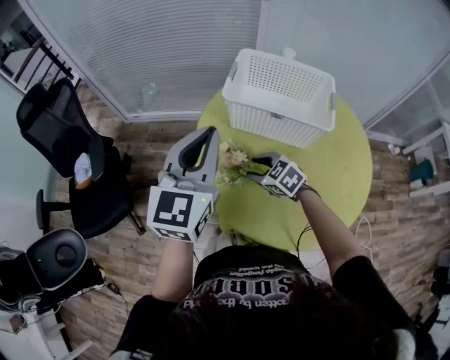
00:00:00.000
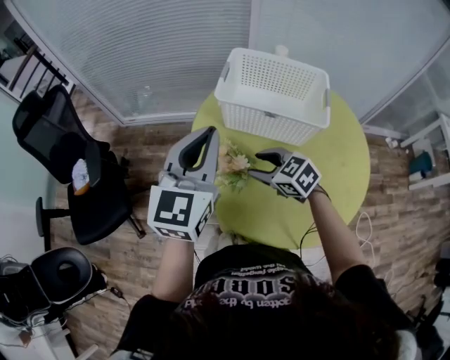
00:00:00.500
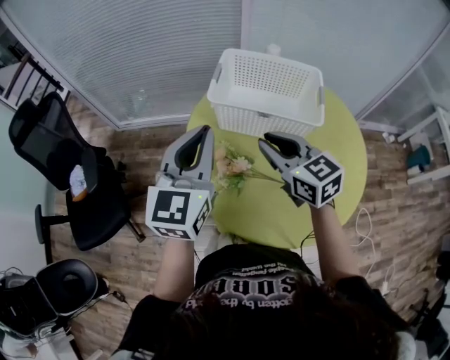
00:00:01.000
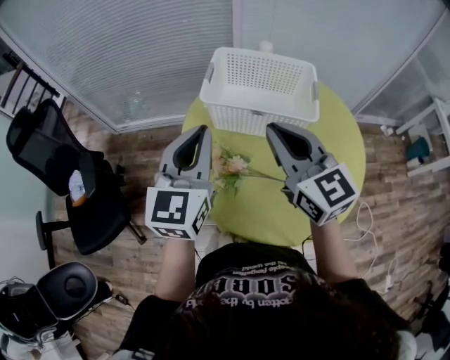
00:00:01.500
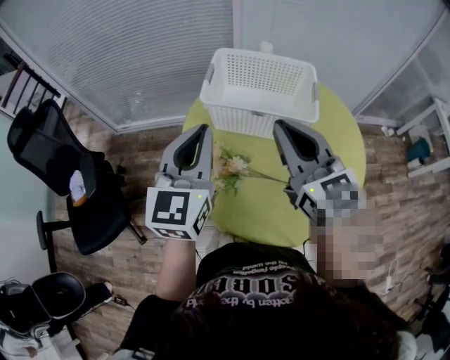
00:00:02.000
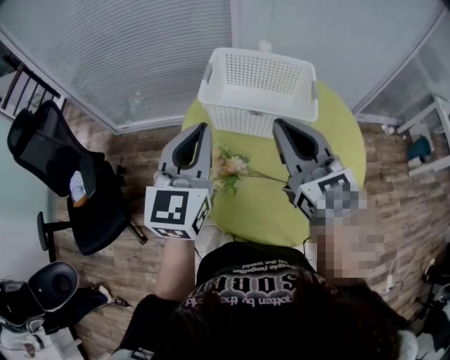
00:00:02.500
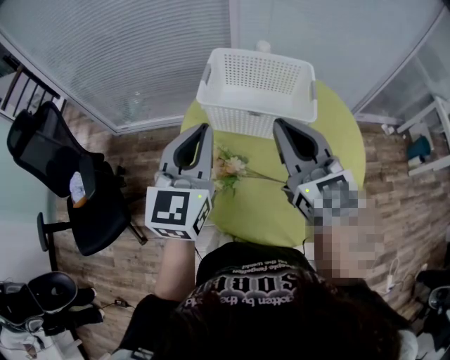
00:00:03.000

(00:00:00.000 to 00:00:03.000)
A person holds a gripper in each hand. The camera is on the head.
00:00:00.000 - 00:00:01.500: The right gripper goes about 30 cm upward, tilts its fingers some 40 degrees upward, and closes its fingers.
00:00:01.500 - 00:00:03.000: The grippers stay close to where they were, moving slightly.

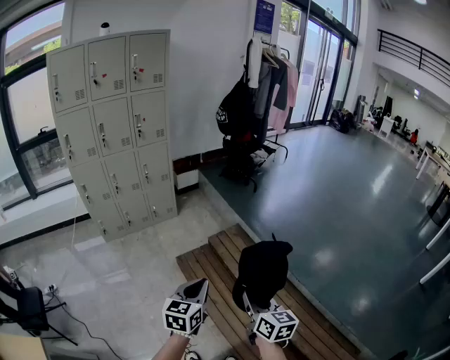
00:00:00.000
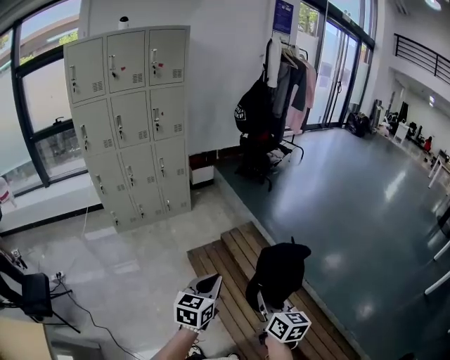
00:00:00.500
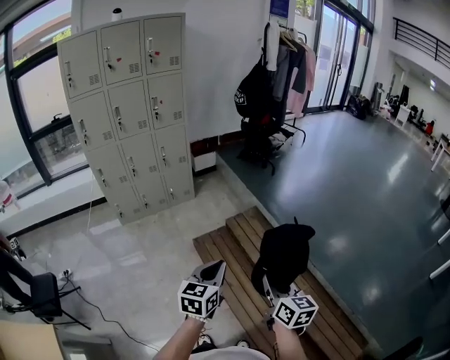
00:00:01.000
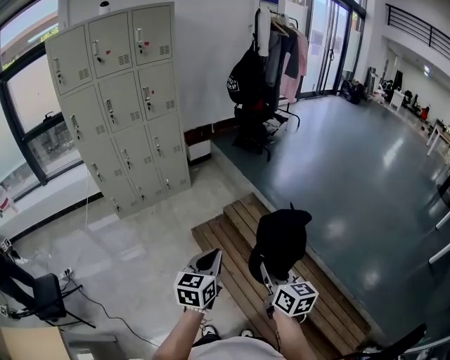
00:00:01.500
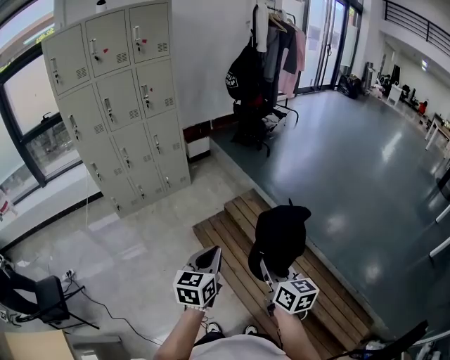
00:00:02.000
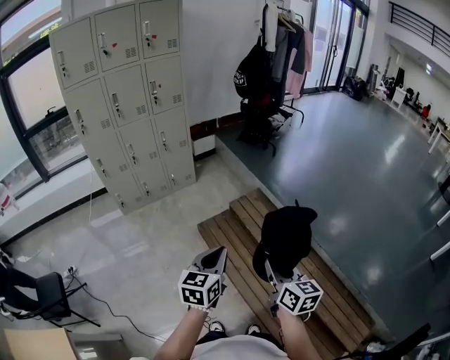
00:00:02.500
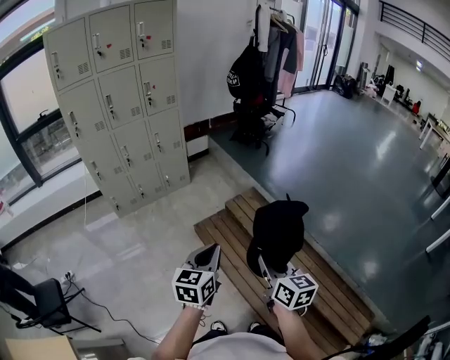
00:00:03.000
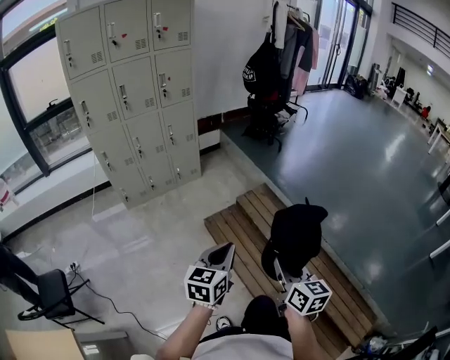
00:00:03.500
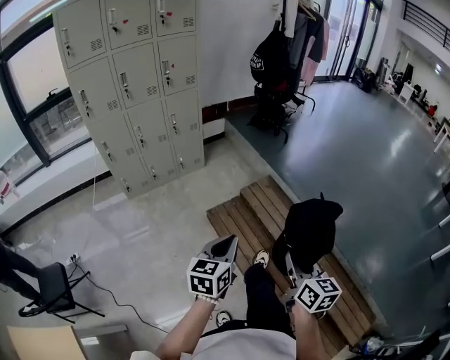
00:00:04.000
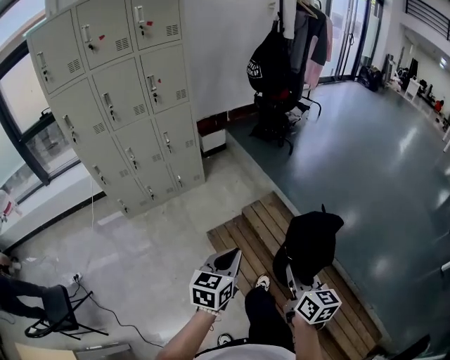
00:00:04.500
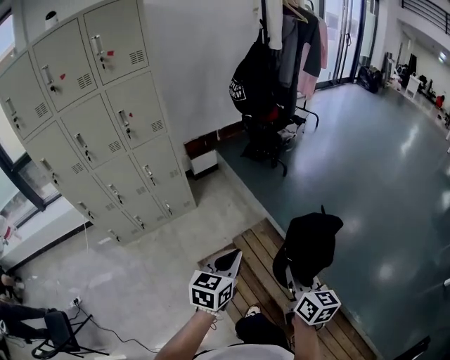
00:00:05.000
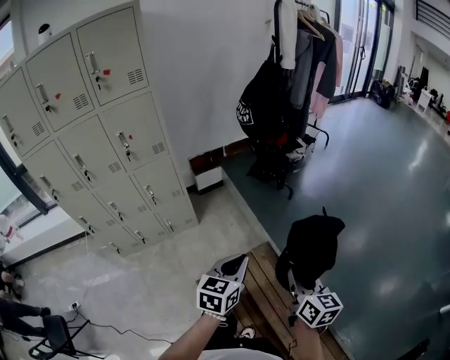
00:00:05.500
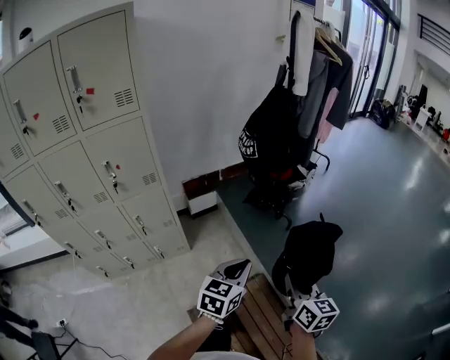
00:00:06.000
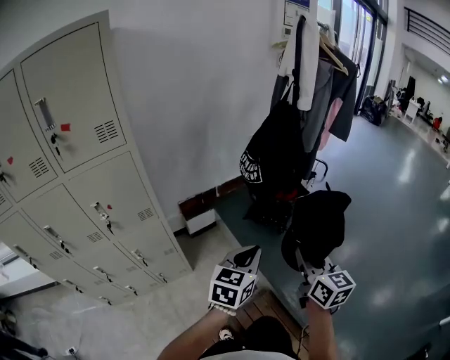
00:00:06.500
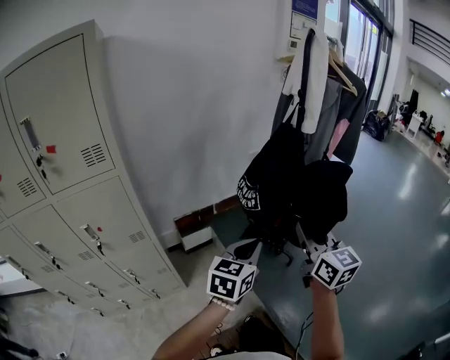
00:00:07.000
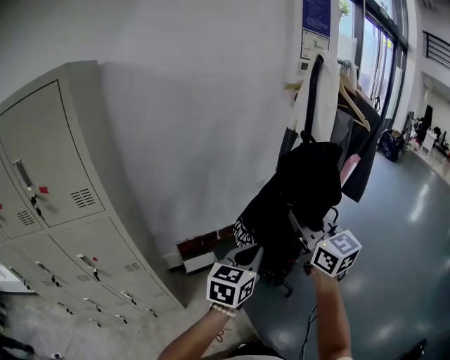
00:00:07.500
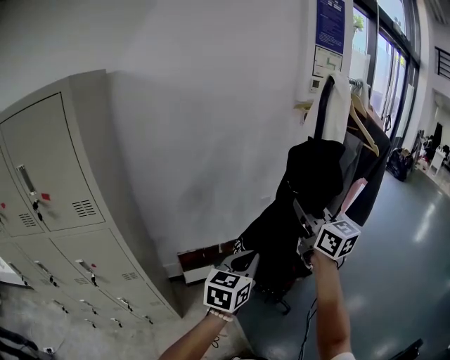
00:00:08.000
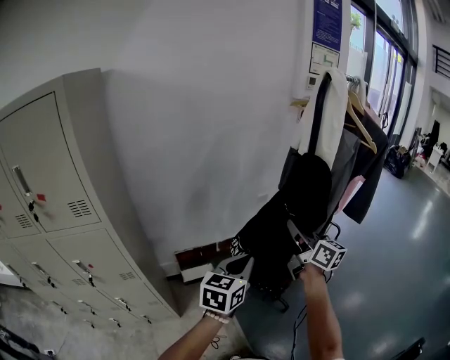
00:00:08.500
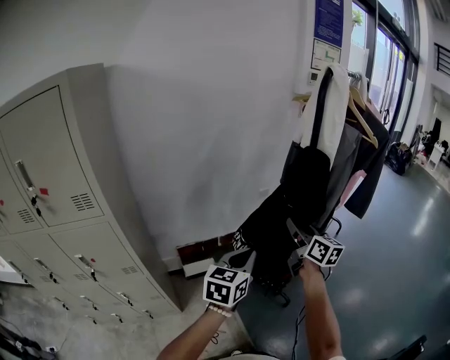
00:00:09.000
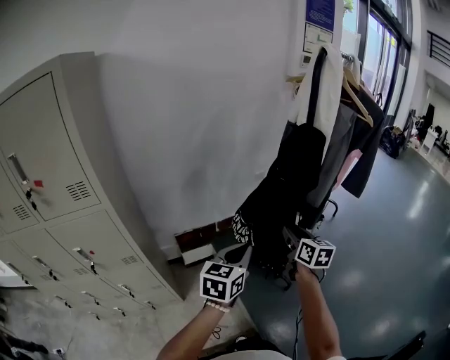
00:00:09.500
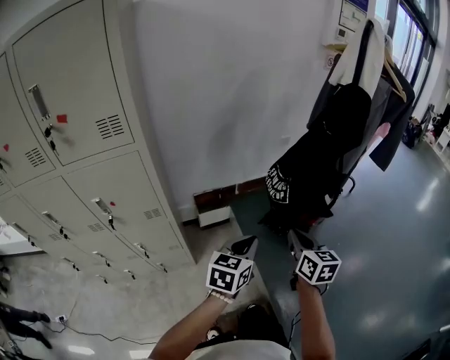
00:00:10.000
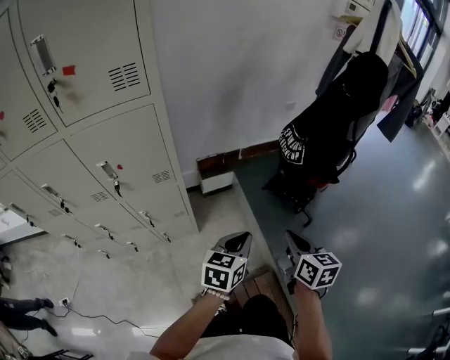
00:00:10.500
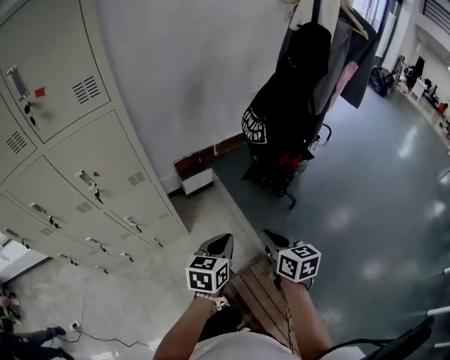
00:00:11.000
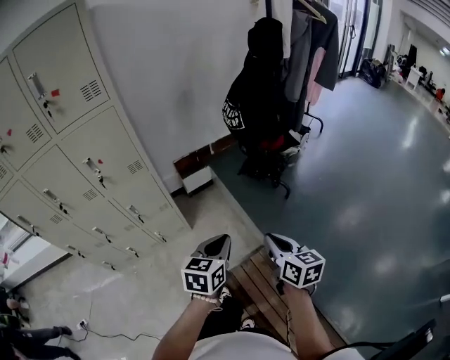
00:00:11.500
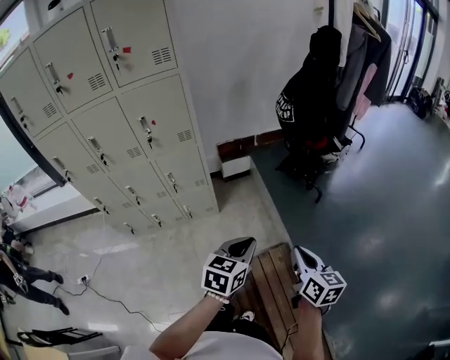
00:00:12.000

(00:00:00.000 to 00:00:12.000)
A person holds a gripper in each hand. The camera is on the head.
00:00:00.000 - 00:00:02.000: The grippers make only small movements.
00:00:02.000 - 00:00:04.000: The two grippers go roughly 5 cm to the left.
00:00:04.000 - 00:00:06.000: Both grippers are carried forward, about 70 cm.
00:00:06.000 - 00:00:08.000: The pair of grippers is taken forward, approximately 60 cm. The right gripper shifts about 35 cm upward, and swivels some 30 degrees. Meanwhile the left gripper is displaced upward by some 20 cm.
00:00:08.000 - 00:00:10.000: The left gripper is displaced downward, backward and to the left by roughly 25 cm; the right gripper heads downward and backward, covering about 35 cm, changes its angle by roughly 30 degrees, and opens, then closes once more.
00:00:10.000 - 00:00:12.000: Both grippers are carried backward, roughly 40 cm.

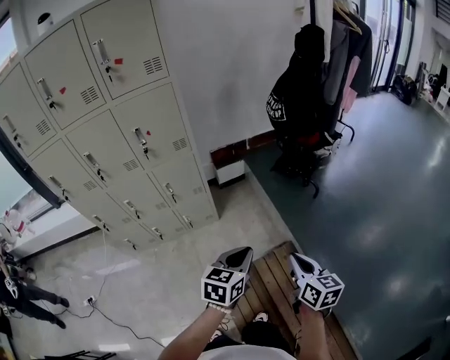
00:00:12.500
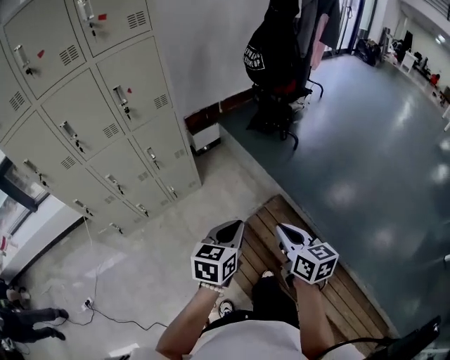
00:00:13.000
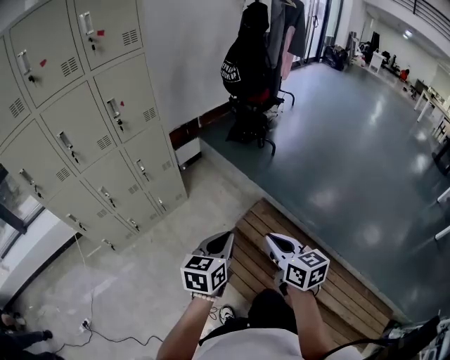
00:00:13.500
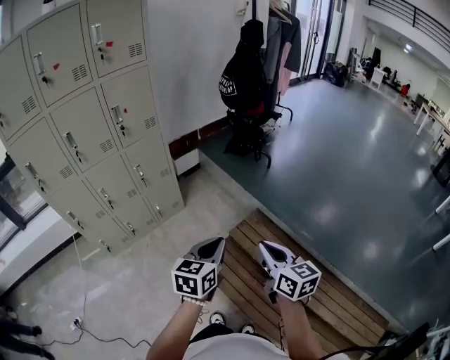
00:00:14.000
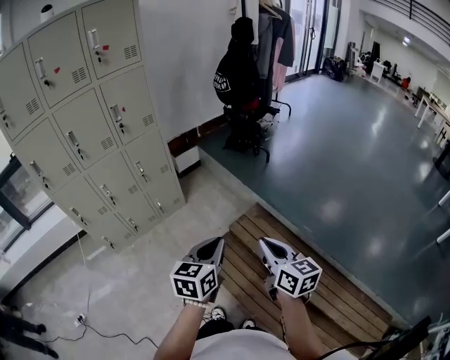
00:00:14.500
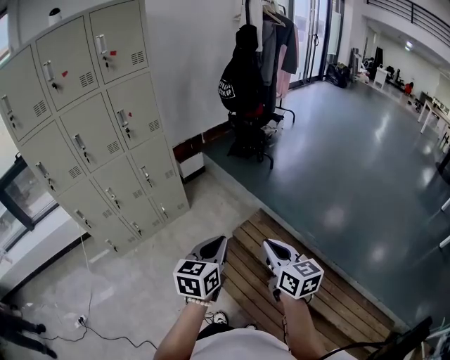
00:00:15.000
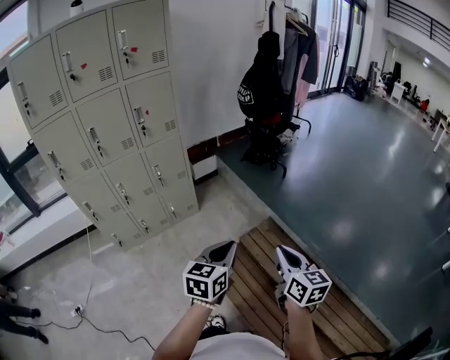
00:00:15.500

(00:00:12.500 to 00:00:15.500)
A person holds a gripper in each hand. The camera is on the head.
00:00:12.500 - 00:00:14.000: The two grippers go about 25 cm backward.
00:00:14.000 - 00:00:15.500: The right gripper heads to the right, covering roughly 5 cm.

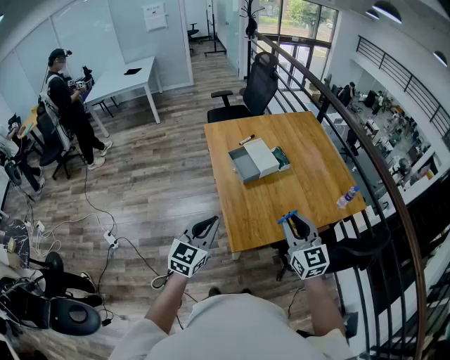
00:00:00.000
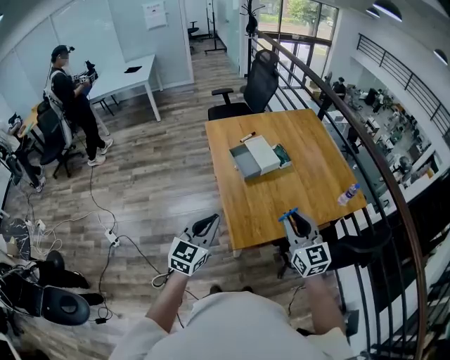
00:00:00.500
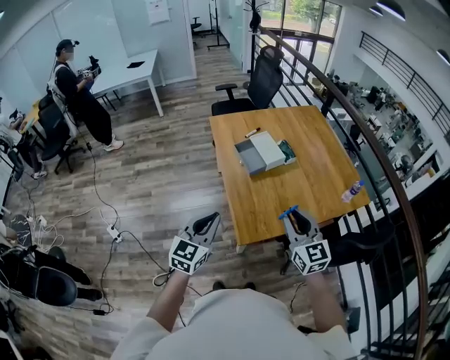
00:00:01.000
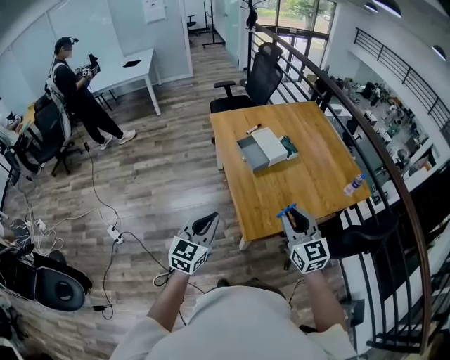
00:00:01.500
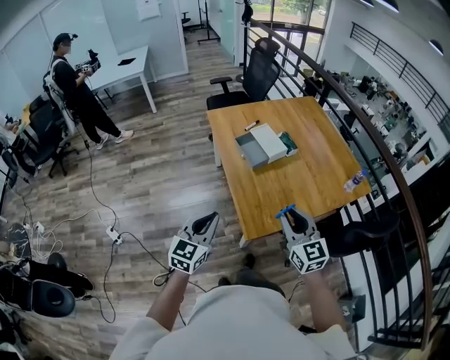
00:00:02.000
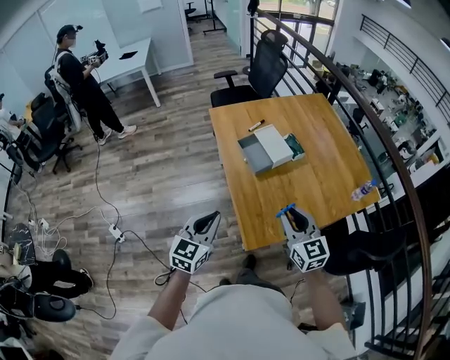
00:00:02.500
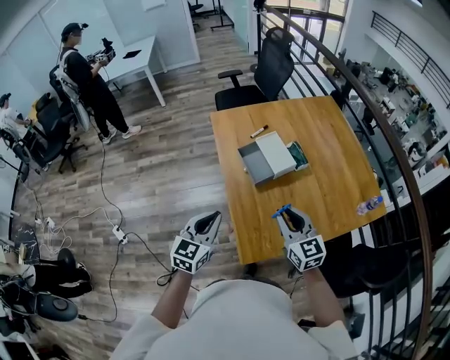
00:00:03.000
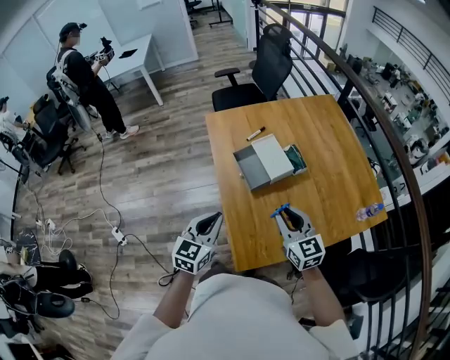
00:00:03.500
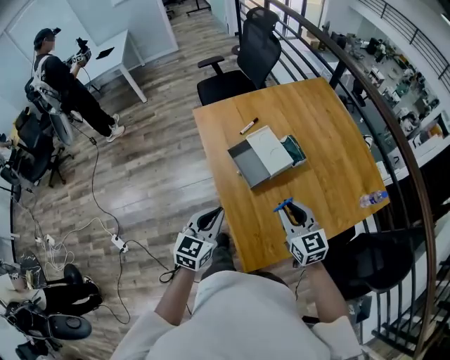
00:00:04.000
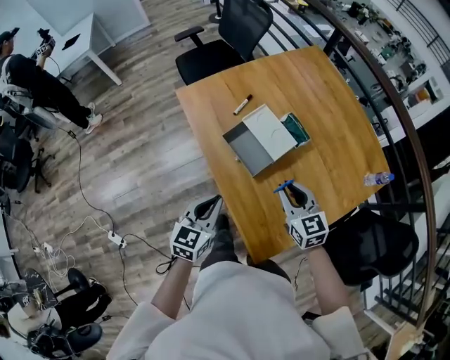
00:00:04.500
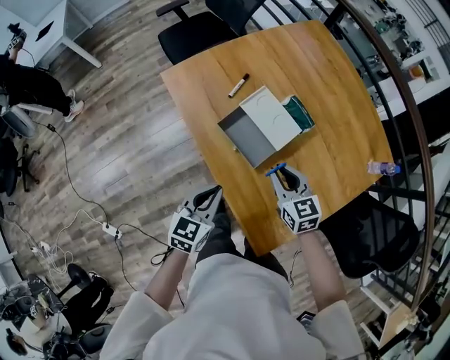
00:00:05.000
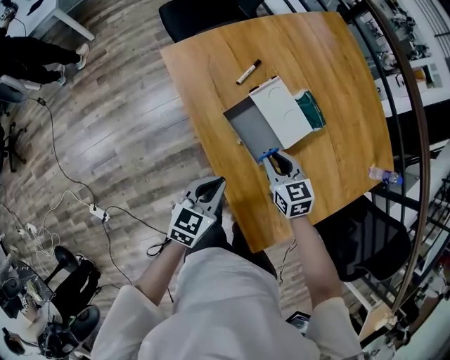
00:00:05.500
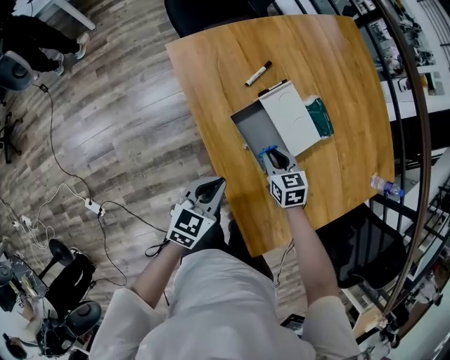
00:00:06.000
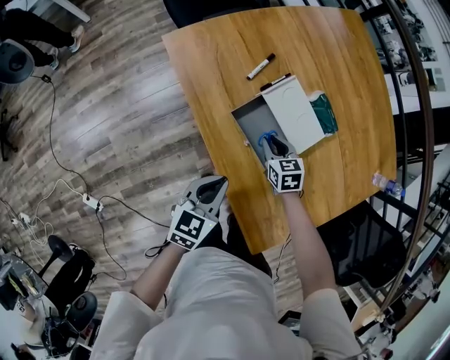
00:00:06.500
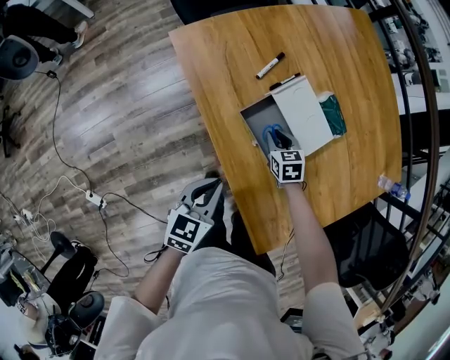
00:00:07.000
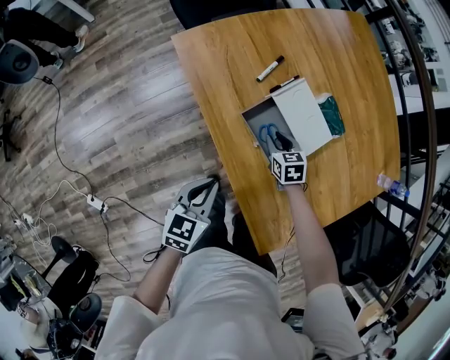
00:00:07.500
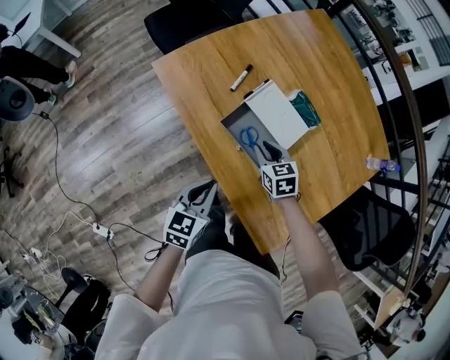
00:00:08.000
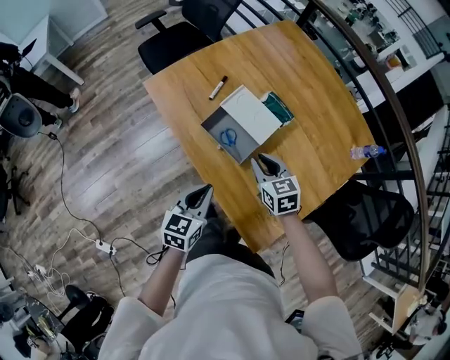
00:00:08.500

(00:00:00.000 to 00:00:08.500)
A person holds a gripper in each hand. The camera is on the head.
00:00:00.000 - 00:00:02.000: The two grippers go approximately 10 cm to the left.
00:00:02.000 - 00:00:04.000: Both grippers move forward, roughly 30 cm.
00:00:04.000 - 00:00:06.500: The right gripper shifts some 40 cm downward, forward and to the left, and tips its fingers downward by about 30 degrees. The left gripper travels downward, forward and to the left by approximately 25 cm, and turns by some 20 degrees.
00:00:06.500 - 00:00:08.500: The right gripper moves upward and backward, some 20 cm. Meanwhile the left gripper heads upward and backward, covering approximately 10 cm.
